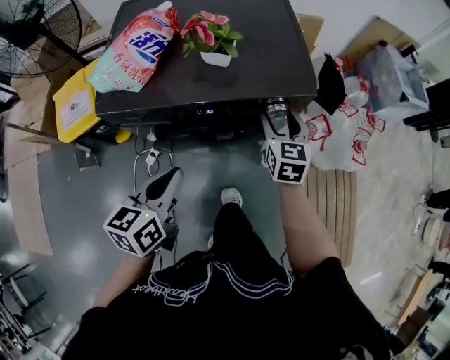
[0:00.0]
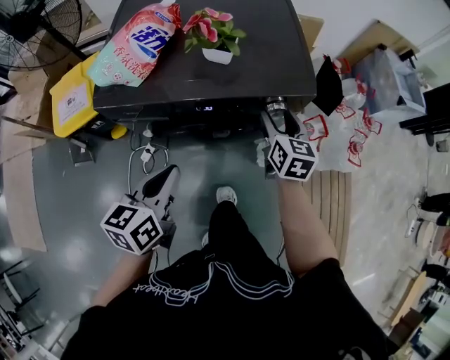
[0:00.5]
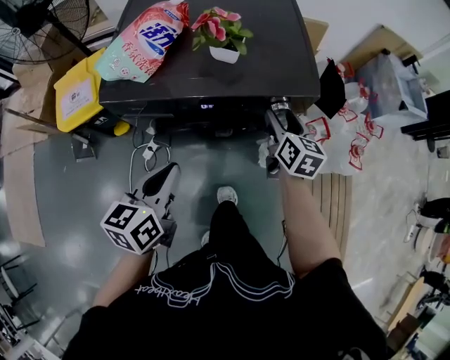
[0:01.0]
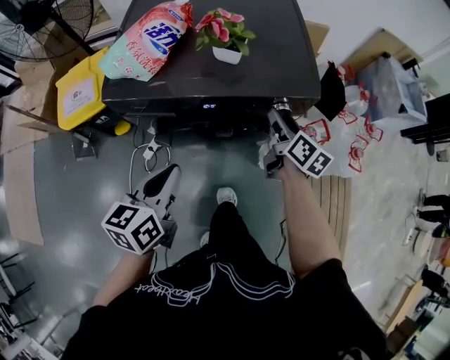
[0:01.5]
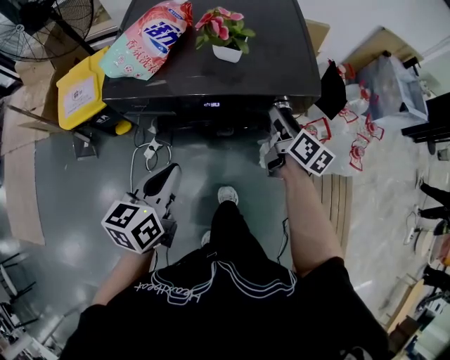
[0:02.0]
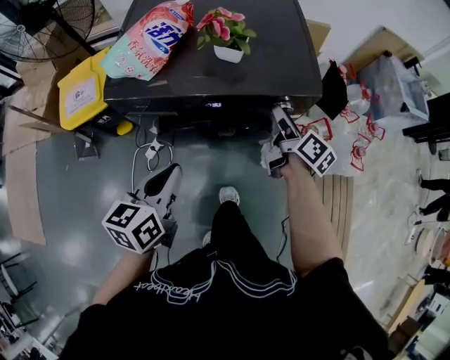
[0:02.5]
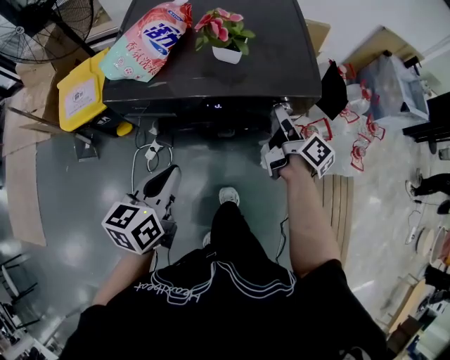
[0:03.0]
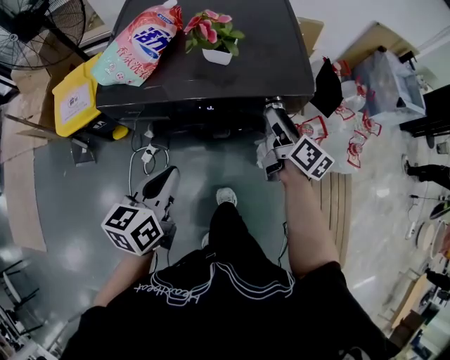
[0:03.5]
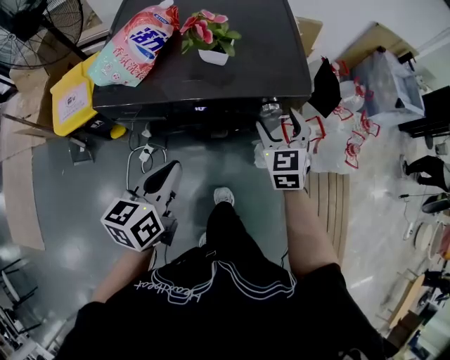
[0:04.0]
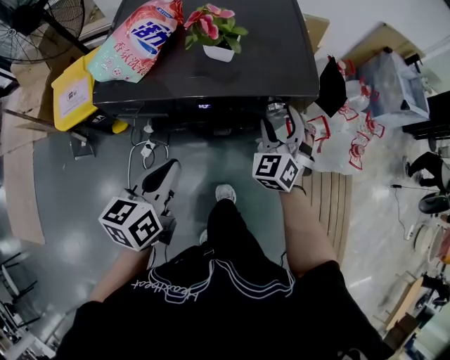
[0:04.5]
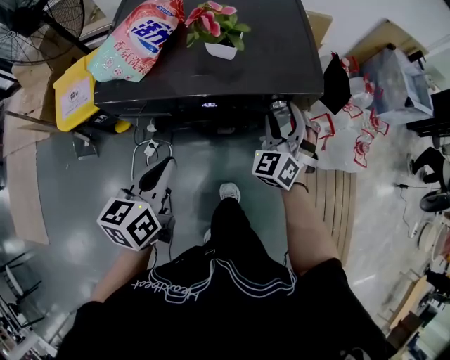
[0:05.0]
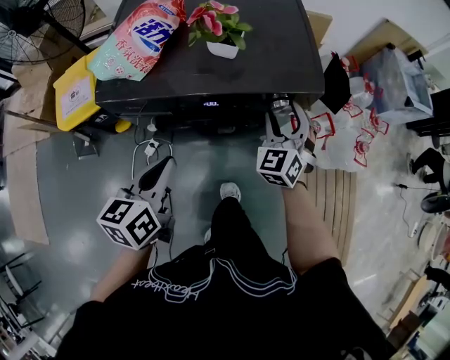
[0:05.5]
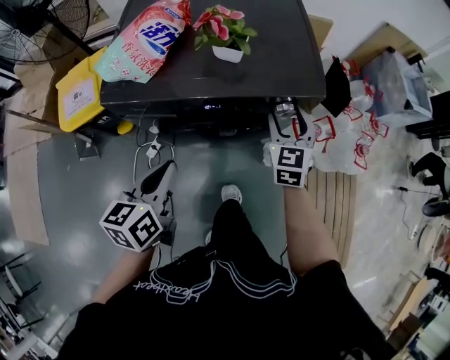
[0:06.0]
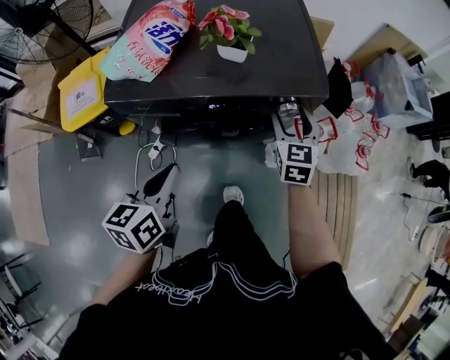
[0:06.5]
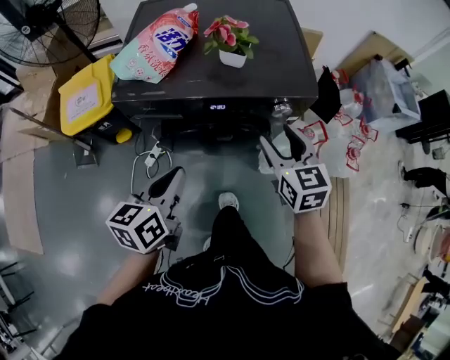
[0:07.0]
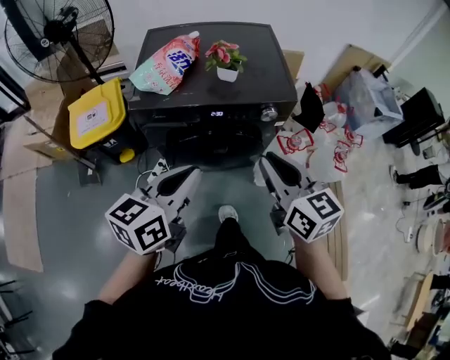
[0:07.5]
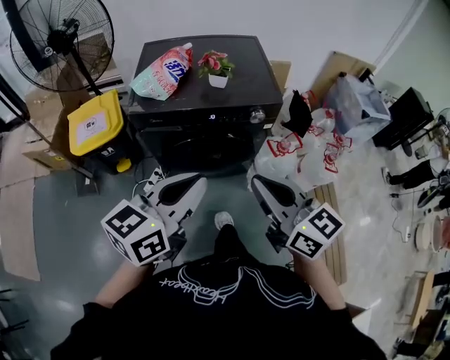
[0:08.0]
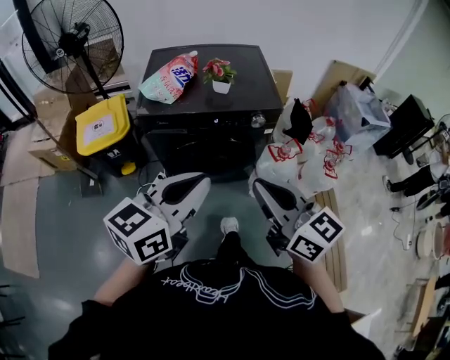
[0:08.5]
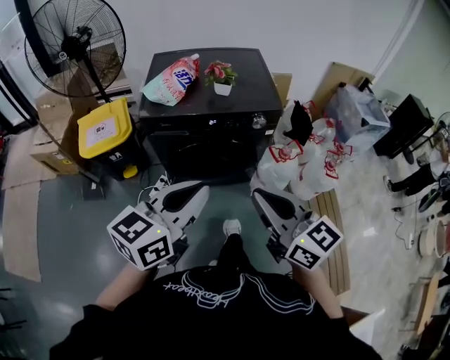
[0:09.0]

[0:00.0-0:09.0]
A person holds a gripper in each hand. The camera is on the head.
0:00.0 to 0:02.0: The right gripper rolls clockwise, seen from behind, by roughly 40 degrees.
0:02.0 to 0:04.5: The right gripper rolls counterclockwise, seen from behind, by roughly 90 degrees.
0:04.5 to 0:07.0: The right gripper is displaced backward and upward by some 10 cm, and rolls clockwise, seen from behind, by approximately 40 degrees.
0:07.0 to 0:09.0: The right gripper moves backward and upward, roughly 35 cm, rotates roughly 30 degrees, and closes; the left gripper shifts approximately 25 cm upward and backward, and changes its angle by approximately 30 degrees.

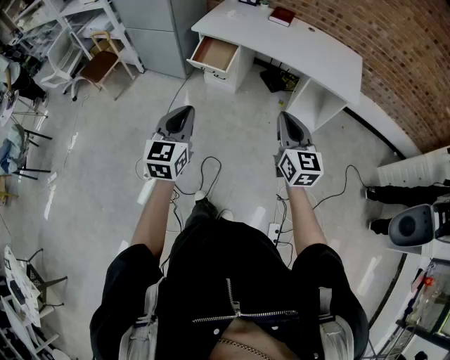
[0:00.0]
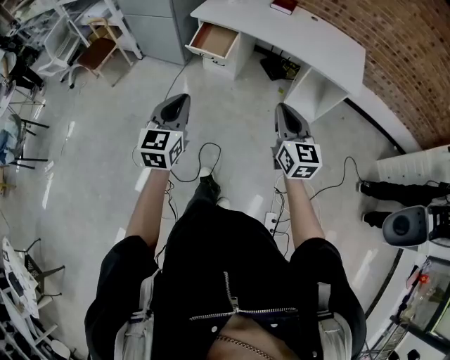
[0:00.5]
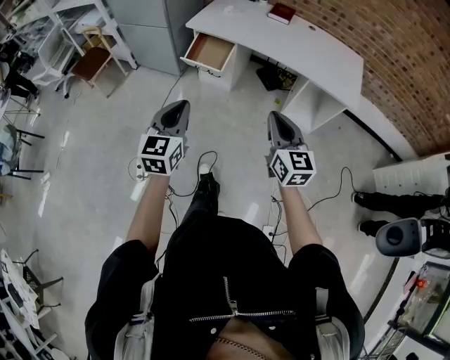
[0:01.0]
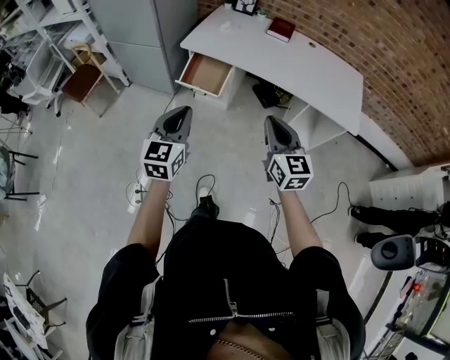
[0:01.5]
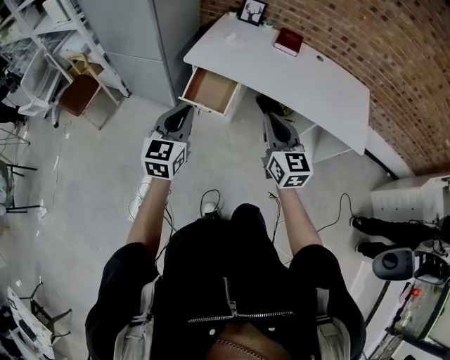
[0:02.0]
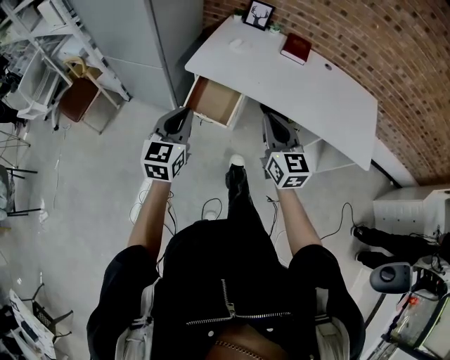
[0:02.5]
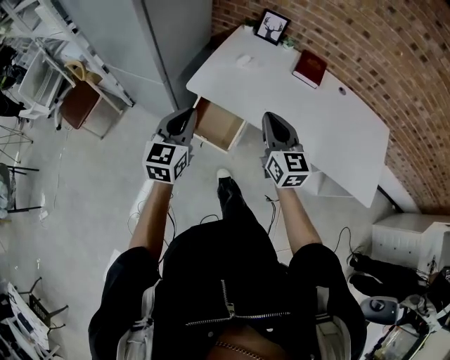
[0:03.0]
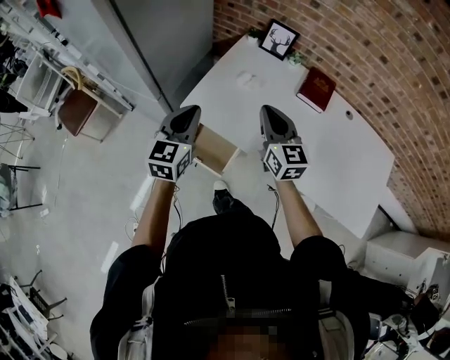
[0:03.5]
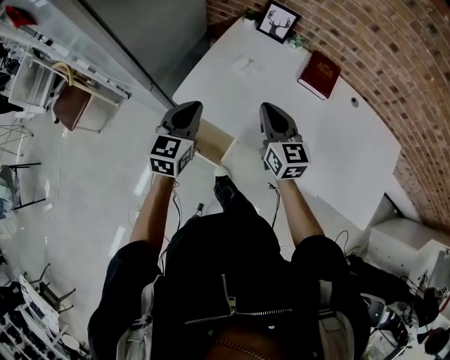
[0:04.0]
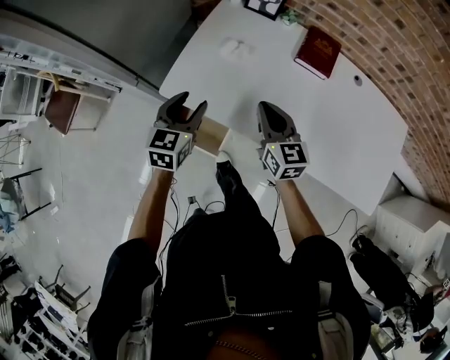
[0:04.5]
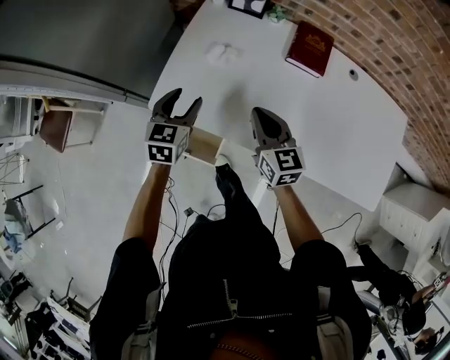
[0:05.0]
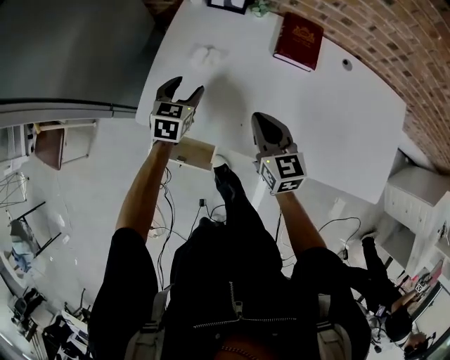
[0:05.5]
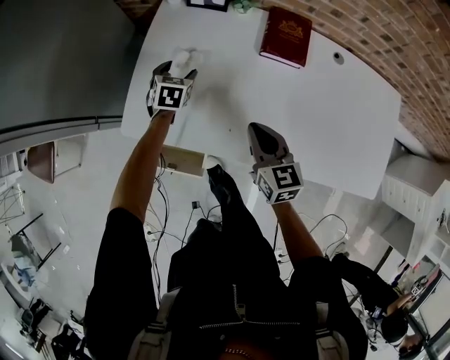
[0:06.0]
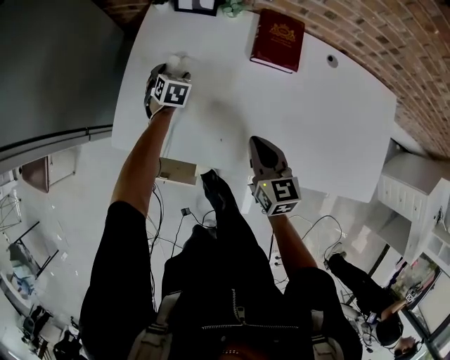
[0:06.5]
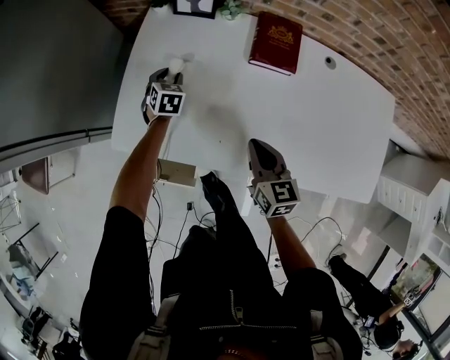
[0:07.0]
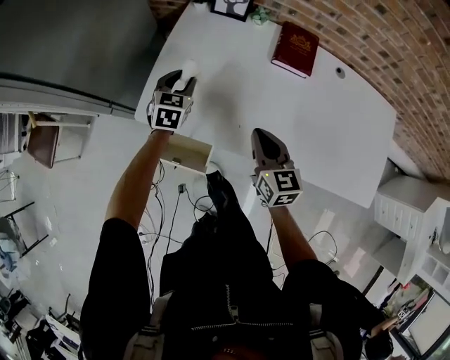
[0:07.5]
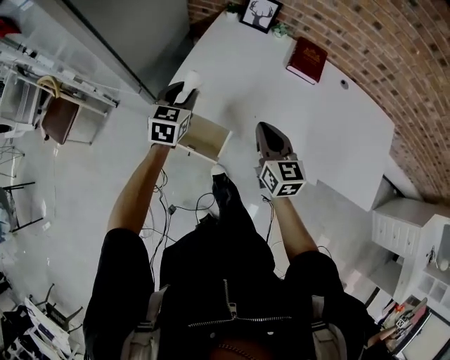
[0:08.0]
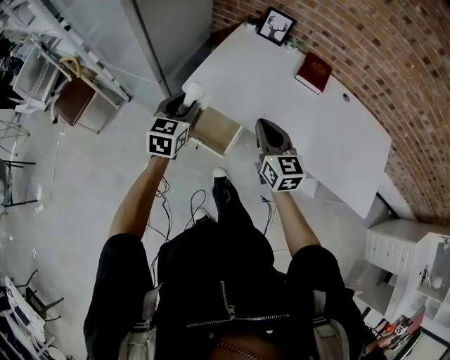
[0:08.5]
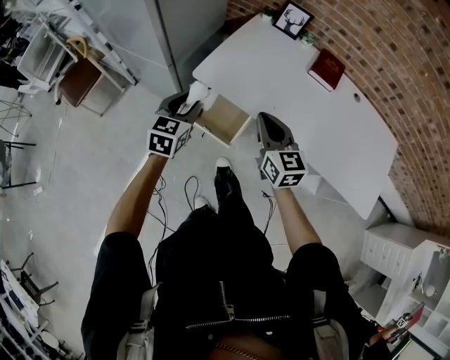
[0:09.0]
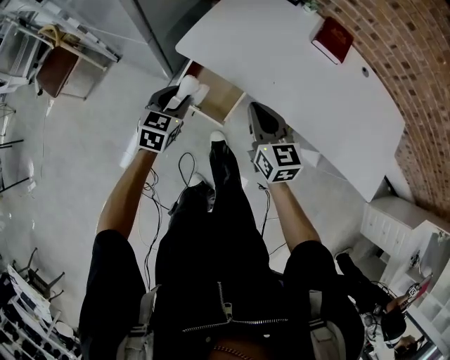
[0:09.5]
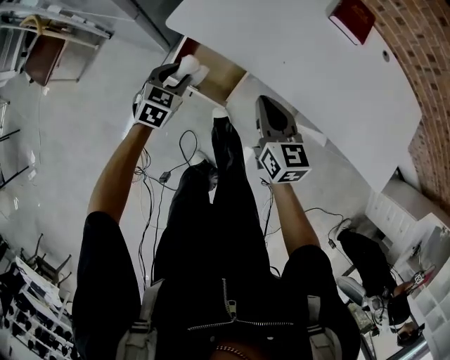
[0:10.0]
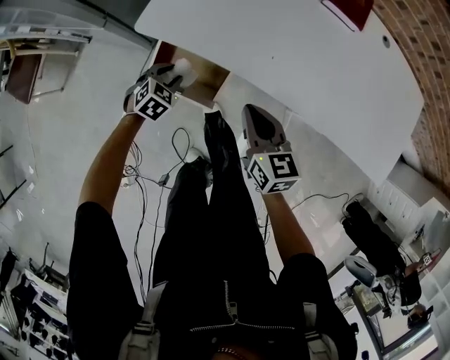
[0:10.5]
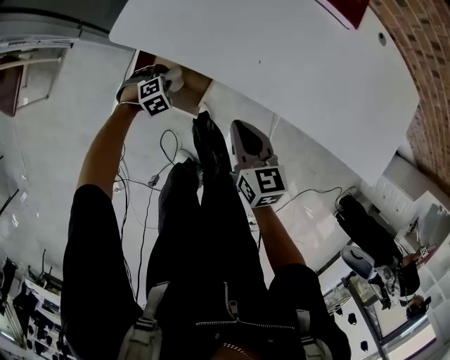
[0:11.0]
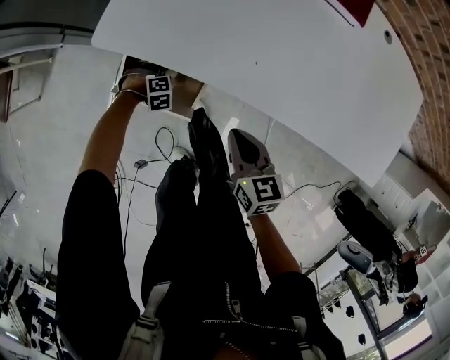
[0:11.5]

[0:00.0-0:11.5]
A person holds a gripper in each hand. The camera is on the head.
0:00.0 to 0:02.0: Both grippers travel together forward, approximately 35 cm.
0:02.0 to 0:04.0: The pair of grippers is taken forward, approximately 40 cm.
0:04.0 to 0:06.0: The left gripper goes about 35 cm forward, downward and to the right, turns by roughly 30 degrees, and opens; the right gripper shifts about 15 cm downward and to the right.
0:06.0 to 0:07.5: The left gripper moves upward and backward, approximately 10 cm, and closes.
0:07.5 to 0:09.5: The right gripper goes some 20 cm to the left and backward. The left gripper heads backward and to the left, covering some 30 cm.
0:09.5 to 0:11.5: The right gripper moves downward, about 15 cm, and changes its angle by some 30 degrees. The left gripper shifts some 40 cm downward, and angles its fingers downward, by some 50 degrees.

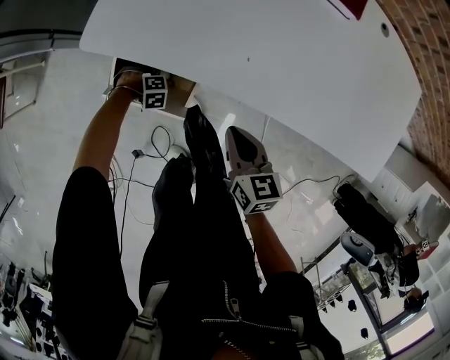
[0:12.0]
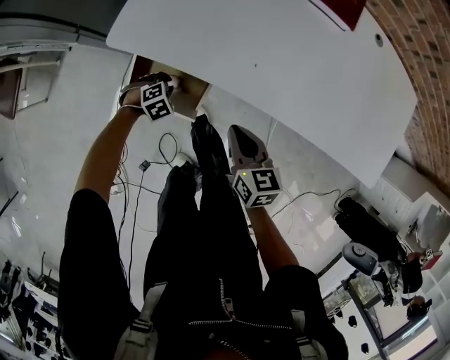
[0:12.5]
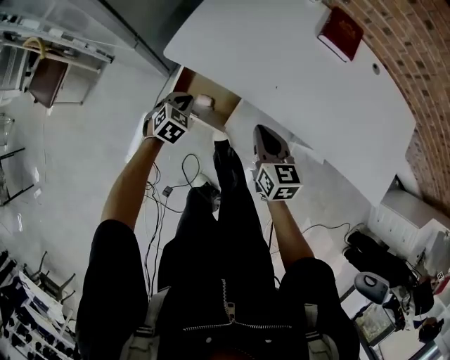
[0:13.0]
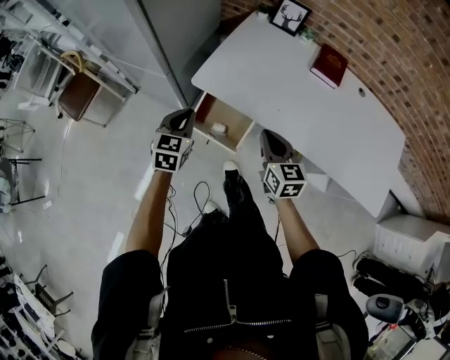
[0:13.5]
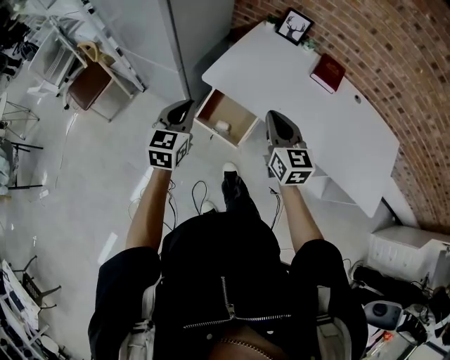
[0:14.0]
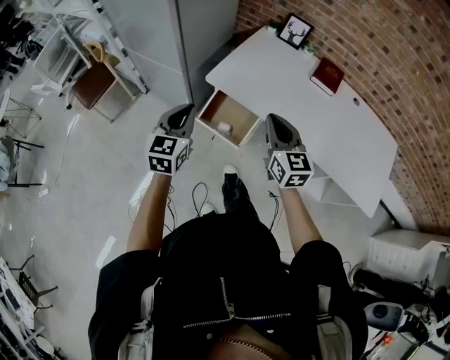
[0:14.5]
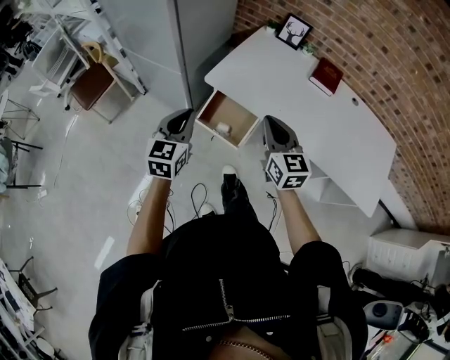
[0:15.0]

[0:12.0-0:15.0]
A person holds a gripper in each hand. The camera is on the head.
0:12.0 to 0:13.5: The left gripper moves upward, some 50 cm, tilts its fingers about 60 degrees upward, and closes its fingers, while the right gripper heads upward, covering some 20 cm, and turns by roughly 30 degrees.
0:13.5 to 0:15.0: The left gripper heads backward and upward, covering roughly 15 cm. Meanwhile the right gripper moves upward and backward, some 10 cm.

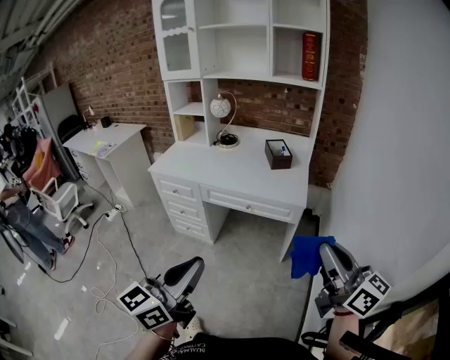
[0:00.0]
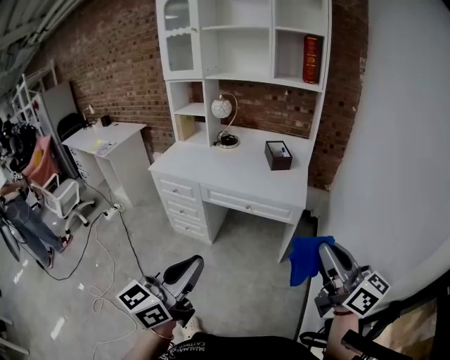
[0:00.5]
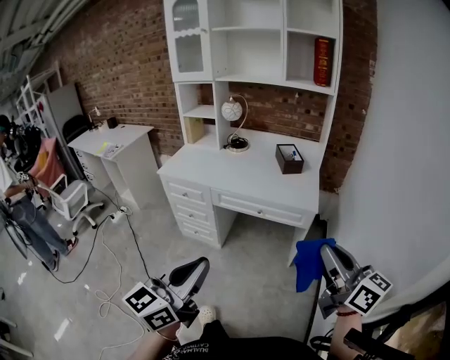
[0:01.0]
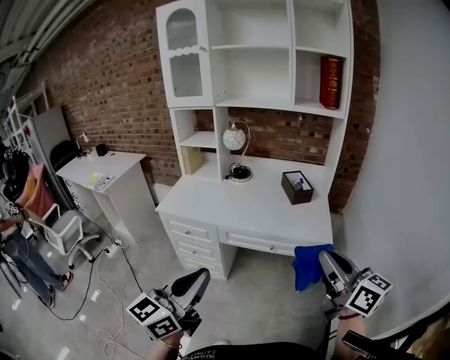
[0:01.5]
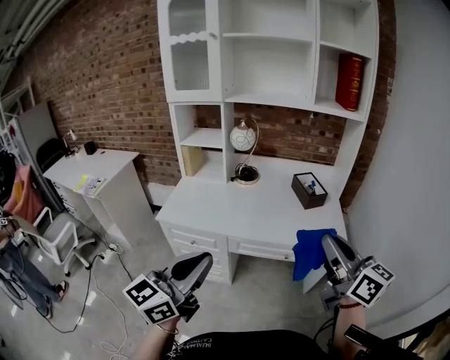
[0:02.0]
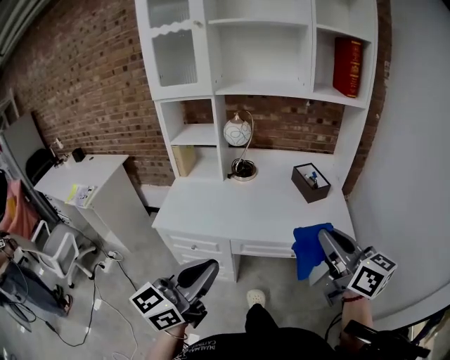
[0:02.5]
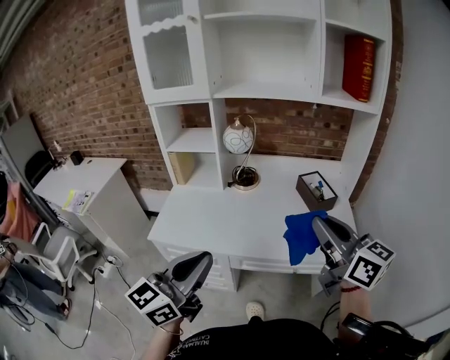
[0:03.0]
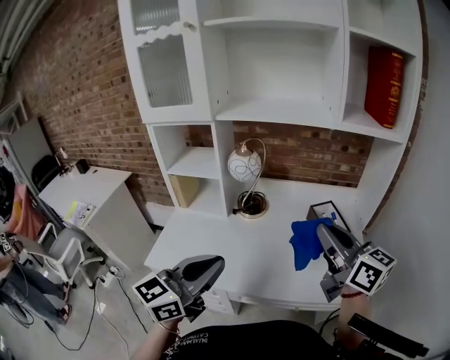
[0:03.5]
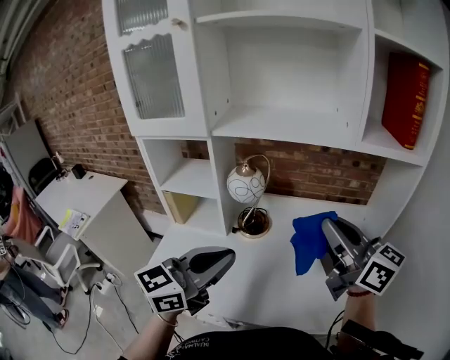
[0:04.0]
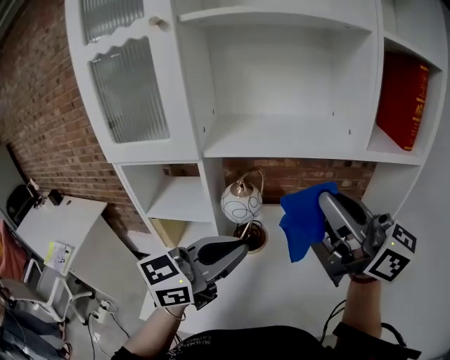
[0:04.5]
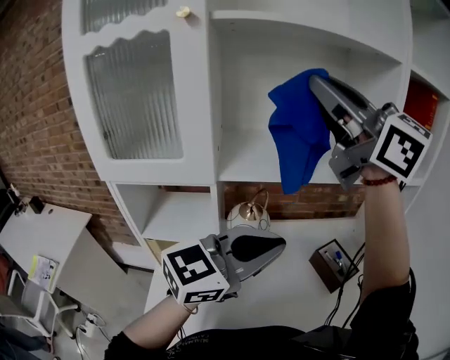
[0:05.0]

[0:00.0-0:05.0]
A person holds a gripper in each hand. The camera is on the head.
0:00.0 to 0:02.5: Both grippers are carried forward and to the left, approximately 40 cm.
0:02.5 to 0:05.0: The two grippers travel together, forward, roughly 50 cm. The right gripper is displaced upward by about 35 cm, and changes its angle by some 40 degrees. Meanwhile the left gripper swivels some 40 degrees.
